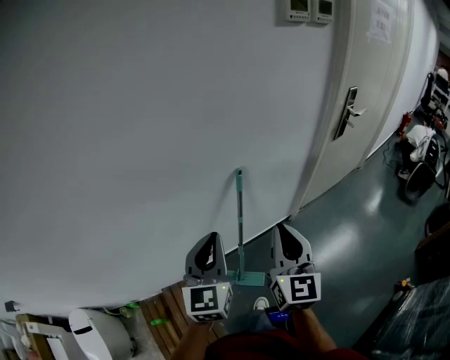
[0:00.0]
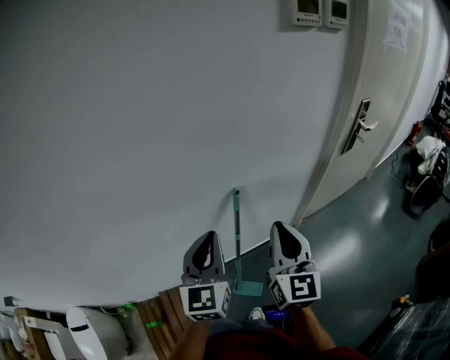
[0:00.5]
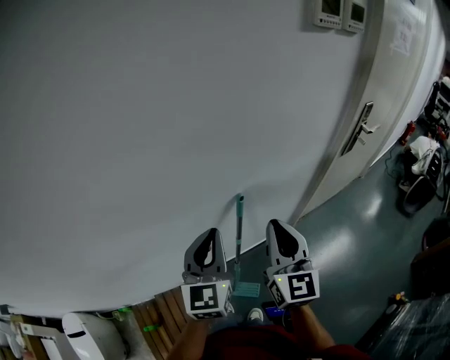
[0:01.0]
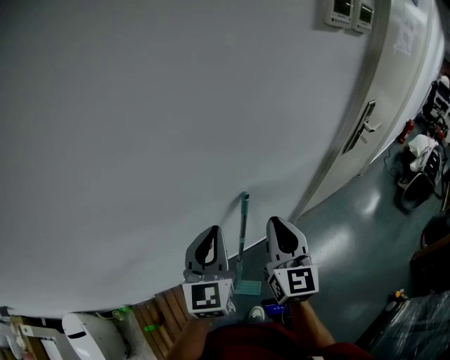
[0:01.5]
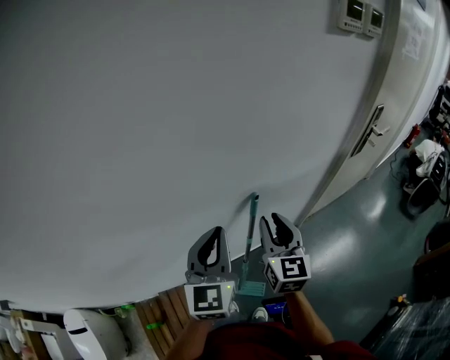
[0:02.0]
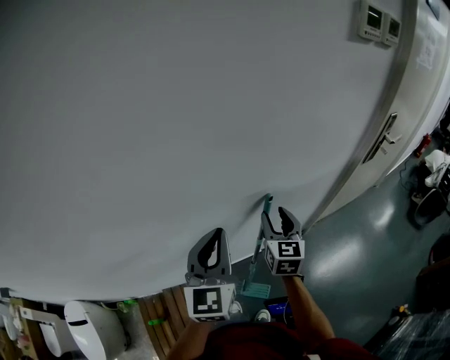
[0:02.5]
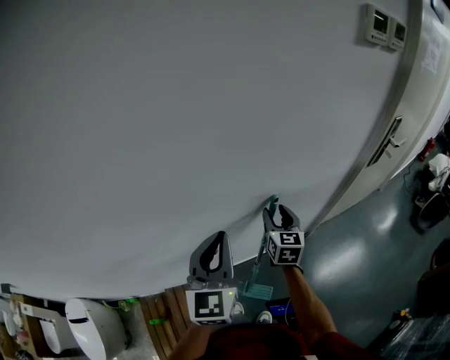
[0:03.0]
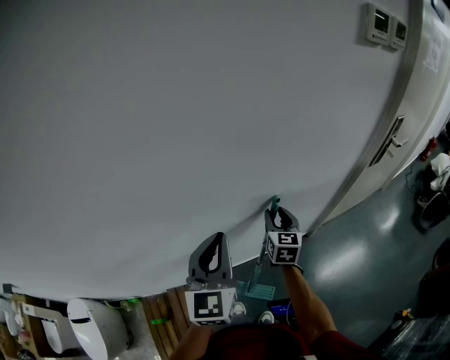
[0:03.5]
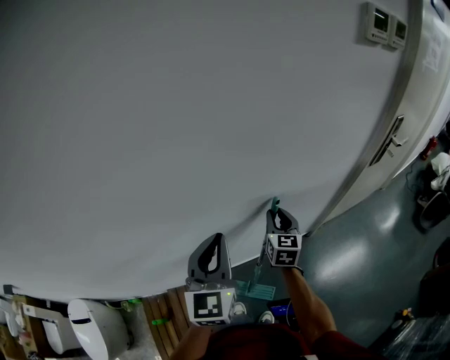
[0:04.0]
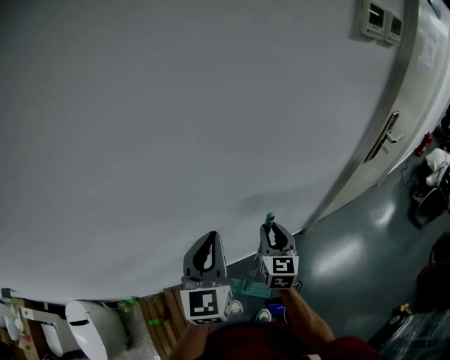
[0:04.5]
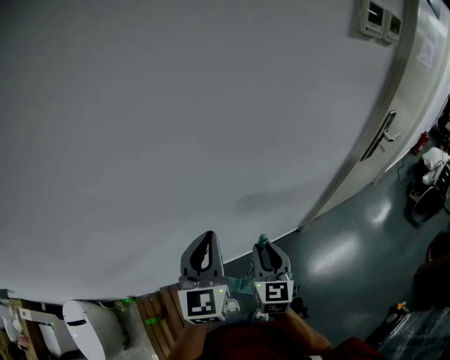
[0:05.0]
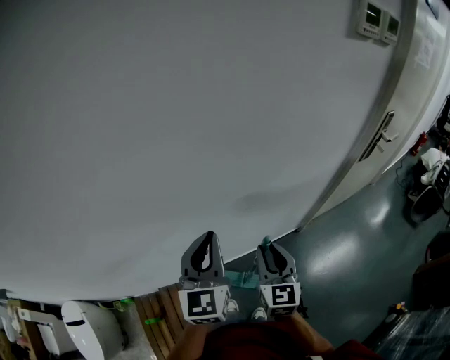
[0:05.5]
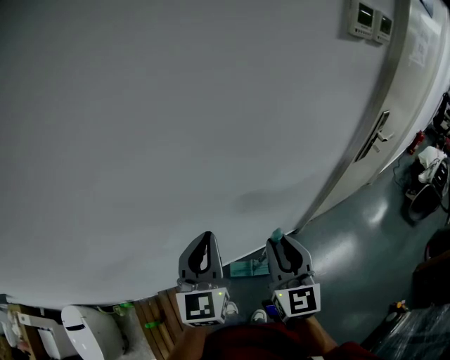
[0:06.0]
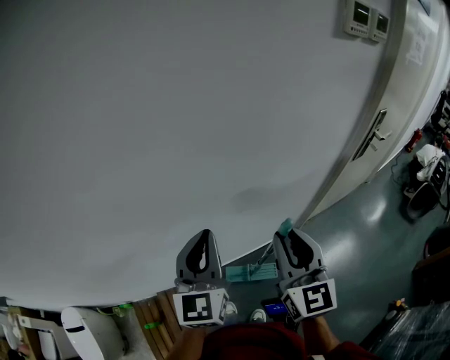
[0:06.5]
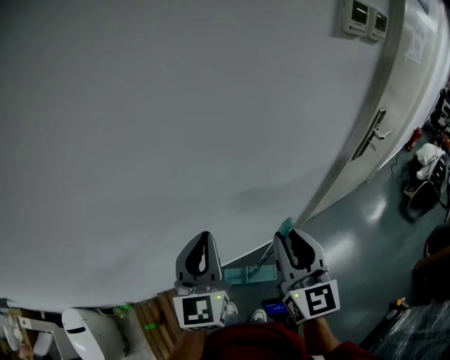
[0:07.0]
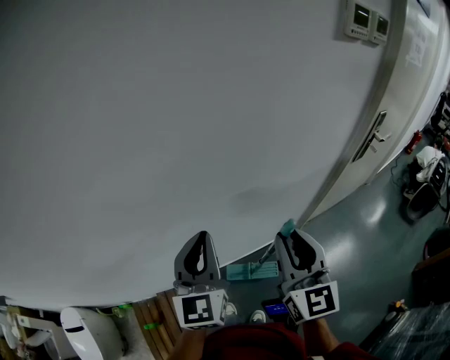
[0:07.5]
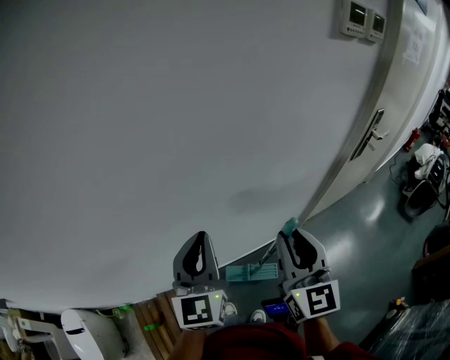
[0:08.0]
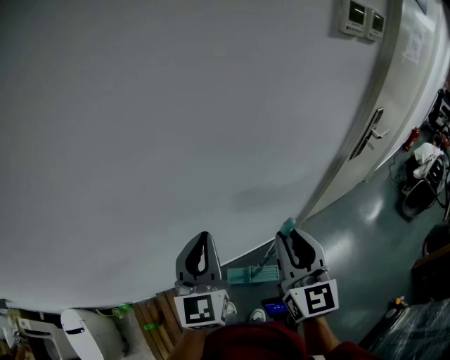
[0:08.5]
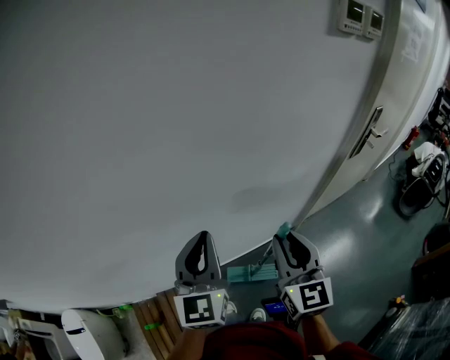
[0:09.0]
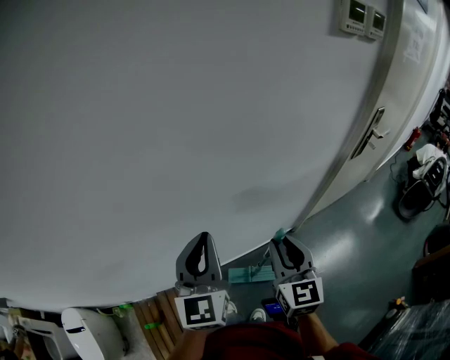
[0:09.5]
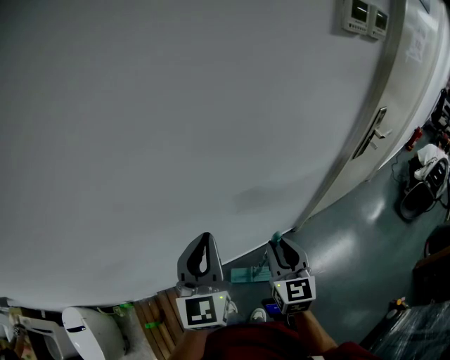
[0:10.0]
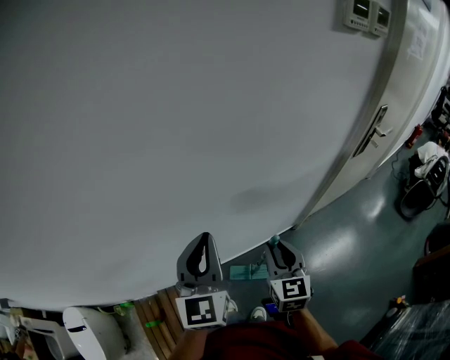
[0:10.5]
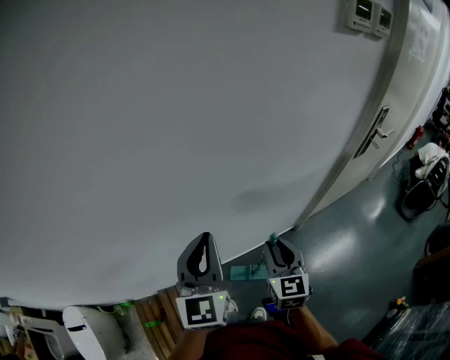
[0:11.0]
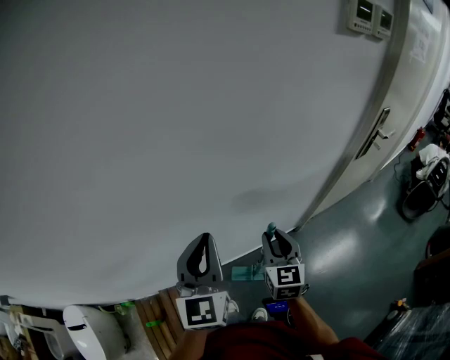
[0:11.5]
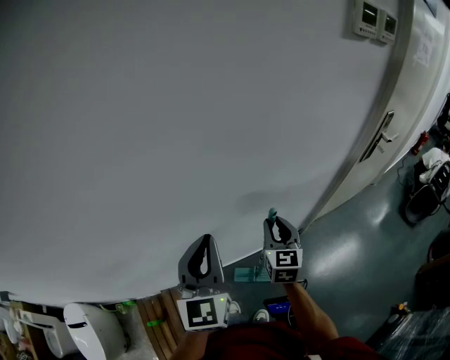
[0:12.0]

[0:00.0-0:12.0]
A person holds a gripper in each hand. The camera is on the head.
0:00.0 to 0:02.0: Both grippers travel together forward, approximately 15 cm. The right gripper opens its fingers.
0:02.0 to 0:04.0: The right gripper heads downward and forward, covering about 15 cm, while the left gripper ends up approximately 5 cm from where it was.
0:04.0 to 0:06.0: The right gripper heads backward and upward, covering roughly 20 cm.
0:06.0 to 0:08.0: The right gripper moves roughly 5 cm.
0:08.0 to 0:10.0: The right gripper shifts roughly 10 cm downward.
0:10.0 to 0:12.0: The right gripper travels forward by roughly 10 cm.

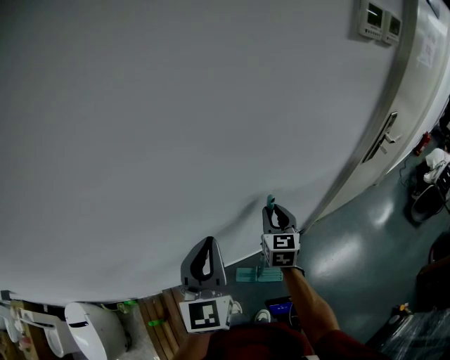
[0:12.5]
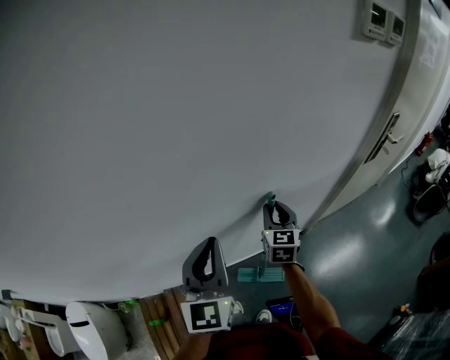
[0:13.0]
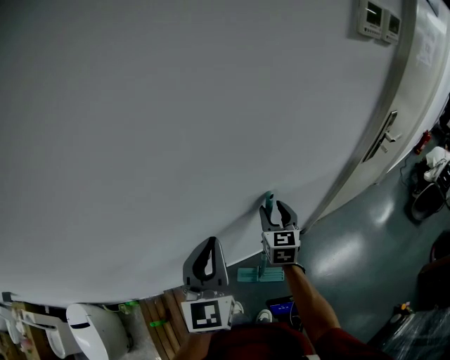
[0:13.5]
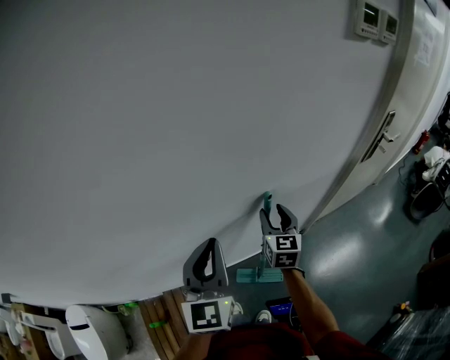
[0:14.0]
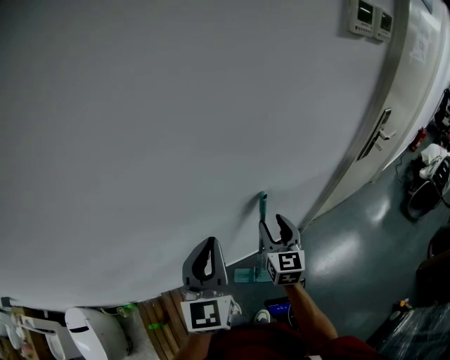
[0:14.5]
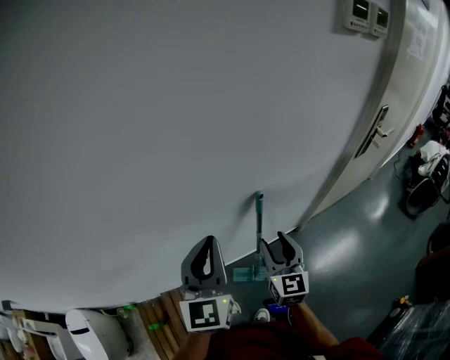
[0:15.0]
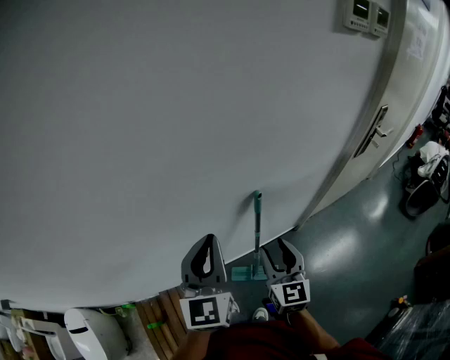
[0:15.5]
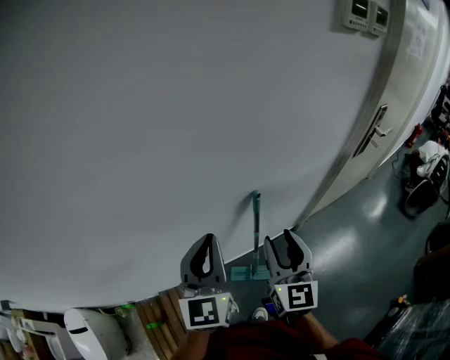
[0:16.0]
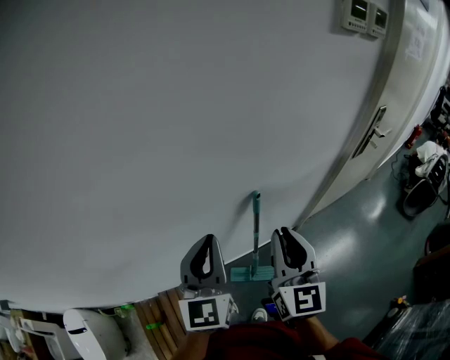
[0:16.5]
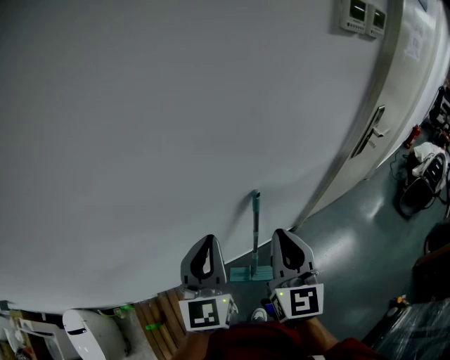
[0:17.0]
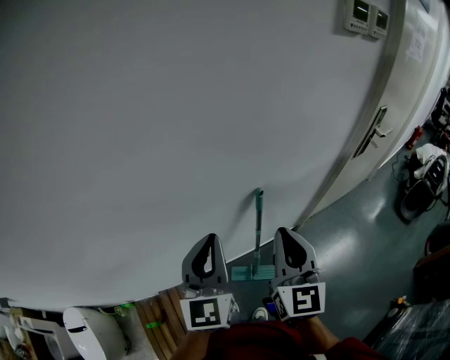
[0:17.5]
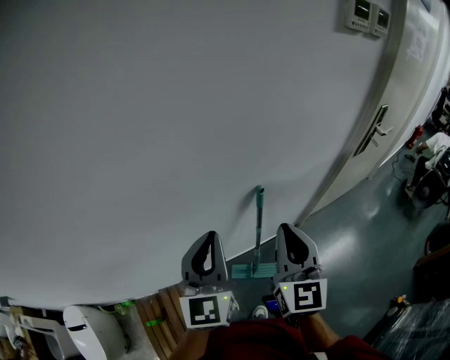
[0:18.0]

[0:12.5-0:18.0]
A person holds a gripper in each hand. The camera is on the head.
0:12.5 to 0:14.5: The right gripper opens its fingers.
0:14.5 to 0:16.0: The right gripper shifts some 10 cm upward and backward.
0:16.0 to 0:18.0: The right gripper shifts approximately 5 cm upward, and closes up.

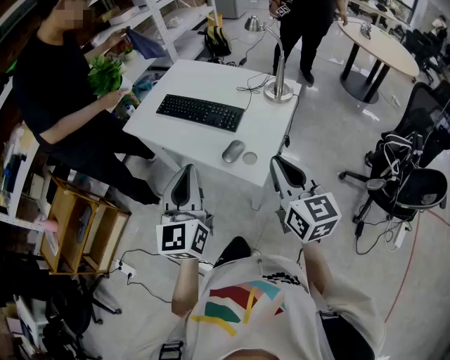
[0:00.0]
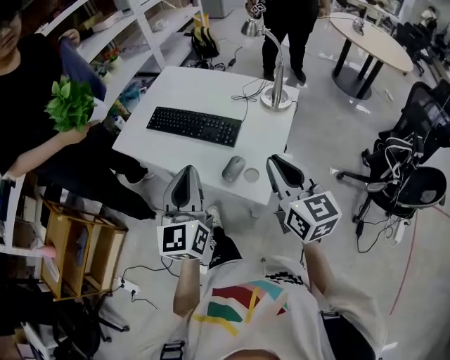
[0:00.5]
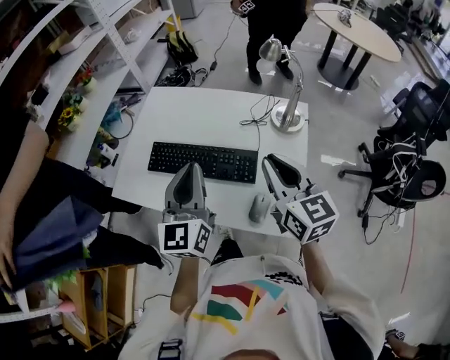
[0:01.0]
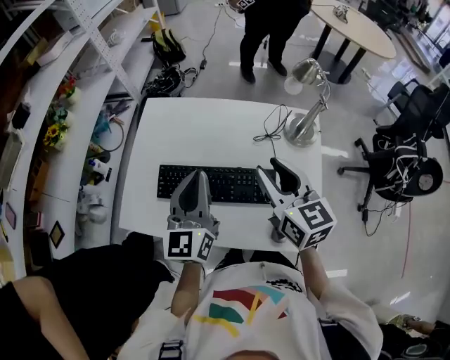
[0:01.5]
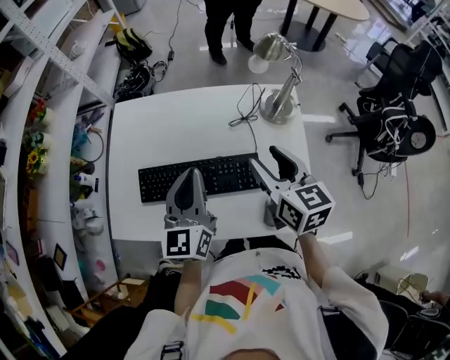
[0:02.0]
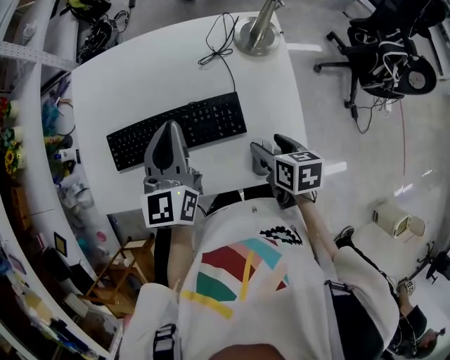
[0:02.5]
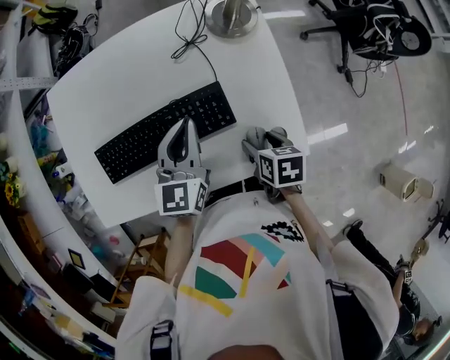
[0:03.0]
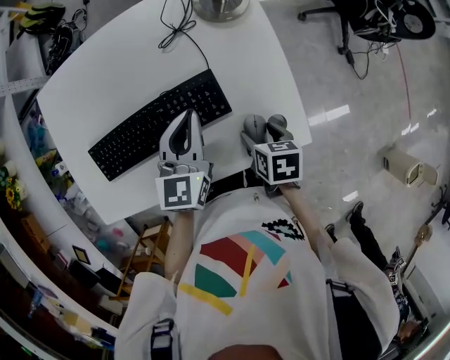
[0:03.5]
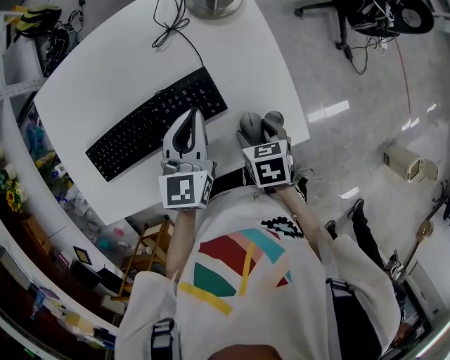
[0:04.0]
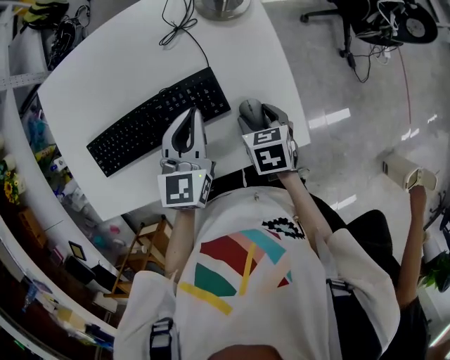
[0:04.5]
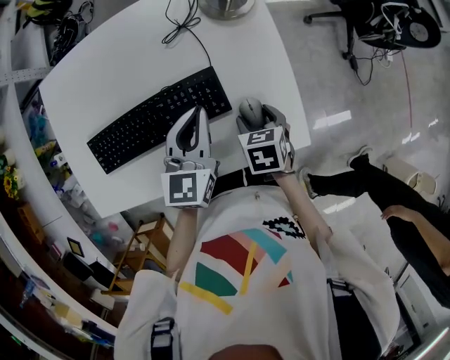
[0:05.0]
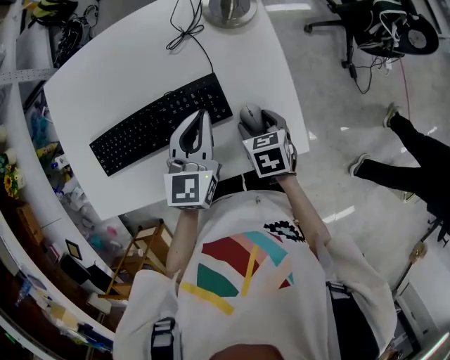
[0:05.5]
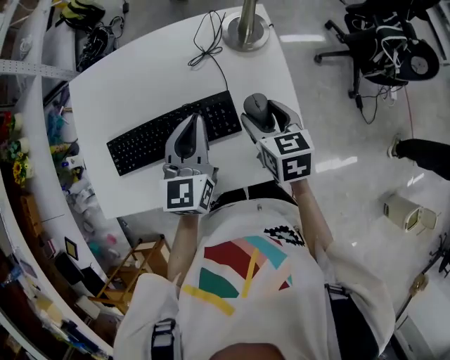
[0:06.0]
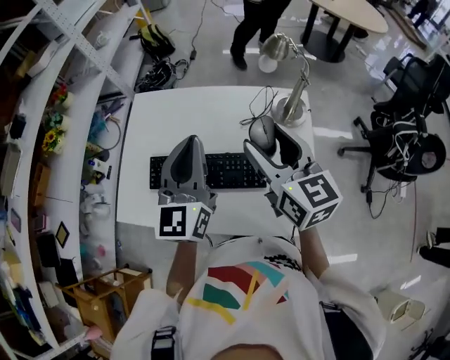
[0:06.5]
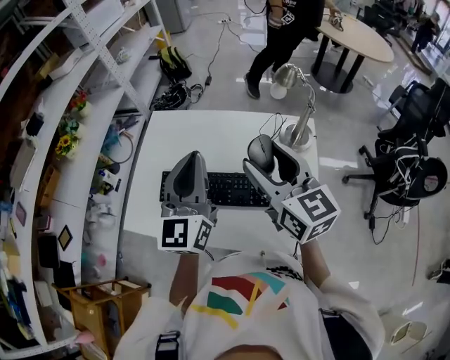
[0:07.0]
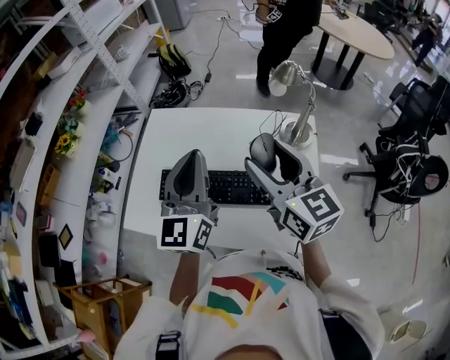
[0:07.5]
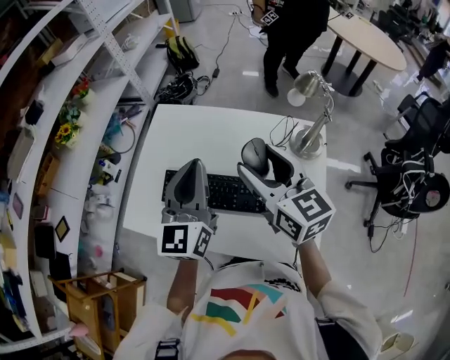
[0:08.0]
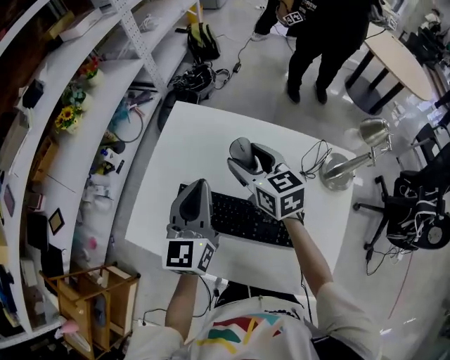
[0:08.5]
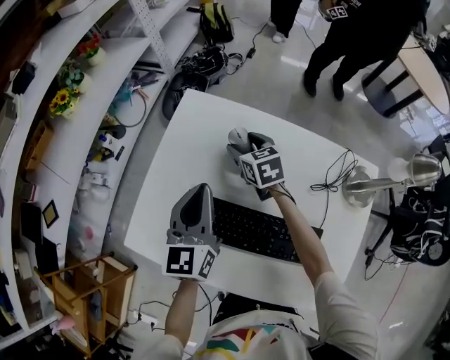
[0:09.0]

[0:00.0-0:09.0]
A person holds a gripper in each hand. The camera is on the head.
0:00.0 to 0:02.0: The right gripper ends up about 40 cm from where it was, changes its angle by about 30 degrees, and opens its fingers. Meanwhile the left gripper changes place by roughly 40 cm, and rotates approximately 30 degrees.
0:02.0 to 0:04.5: The right gripper goes about 25 cm downward, and tips its fingers downward by approximately 40 degrees. Meanwhile the left gripper travels downward and to the right by about 20 cm, and rotates some 30 degrees.
0:04.5 to 0:07.0: Both grippers travel together upward, about 30 cm. The left gripper rotates approximately 40 degrees, while the right gripper tilts its fingers some 60 degrees upward.
0:07.0 to 0:09.0: The left gripper travels downward, forward and to the left by roughly 30 cm, and turns by roughly 20 degrees, while the right gripper heads forward, downward and to the left, covering approximately 50 cm, and angles its fingers downward, by about 30 degrees.
